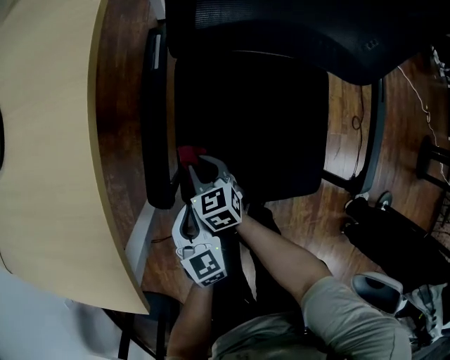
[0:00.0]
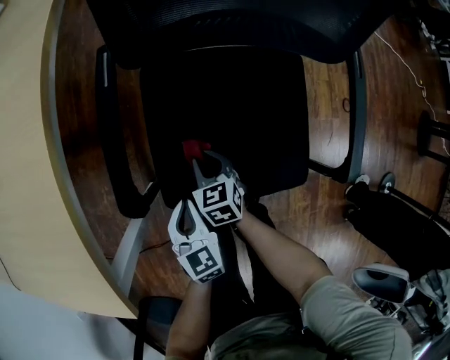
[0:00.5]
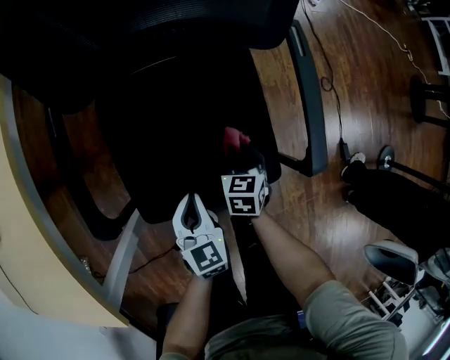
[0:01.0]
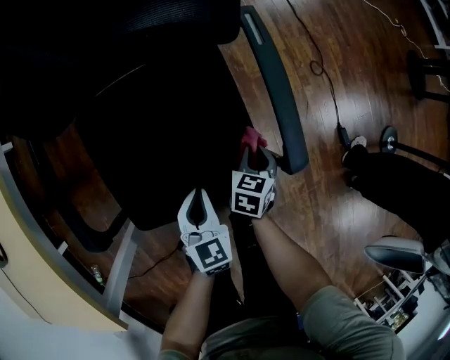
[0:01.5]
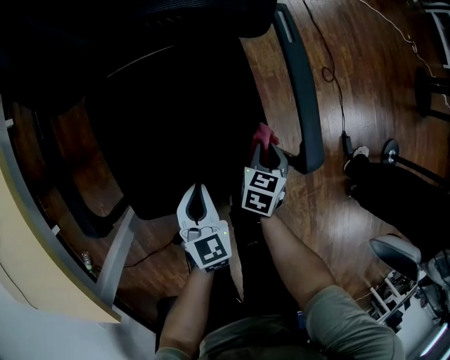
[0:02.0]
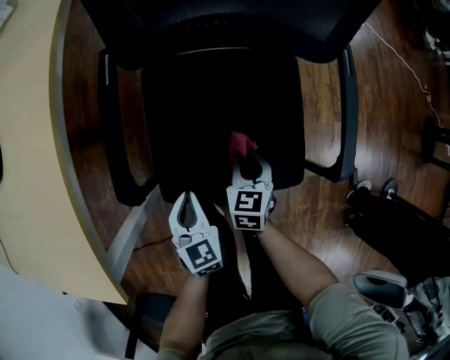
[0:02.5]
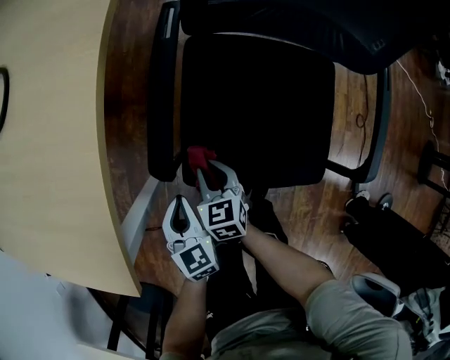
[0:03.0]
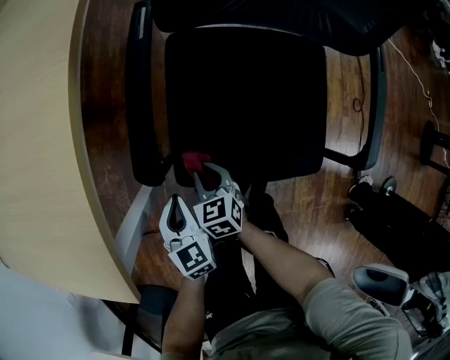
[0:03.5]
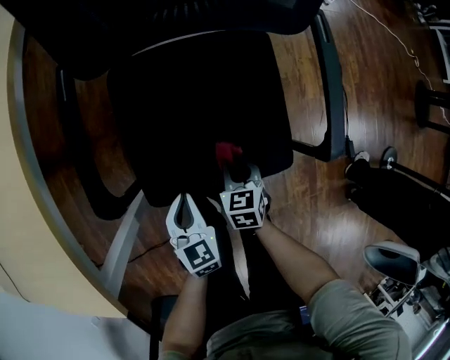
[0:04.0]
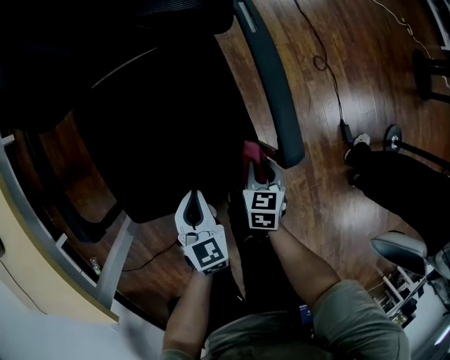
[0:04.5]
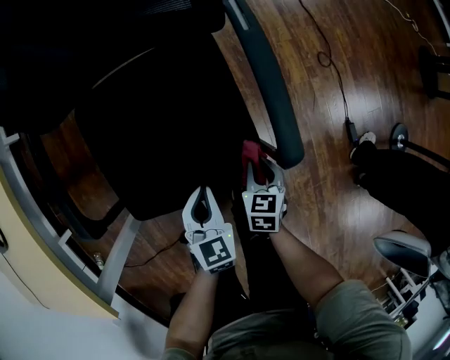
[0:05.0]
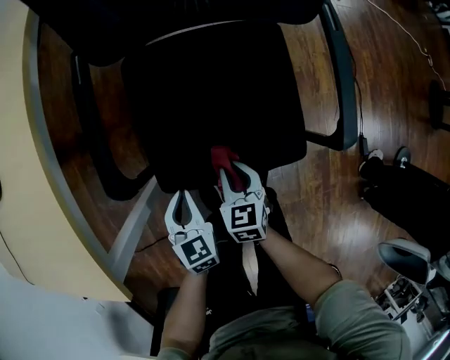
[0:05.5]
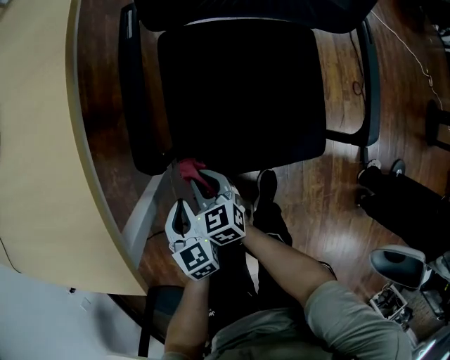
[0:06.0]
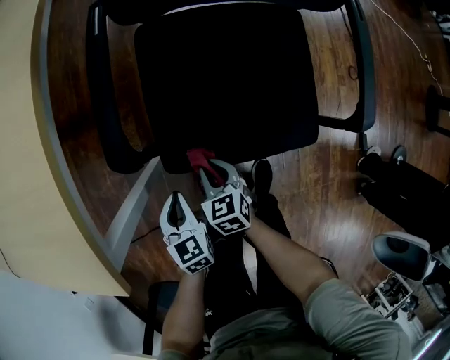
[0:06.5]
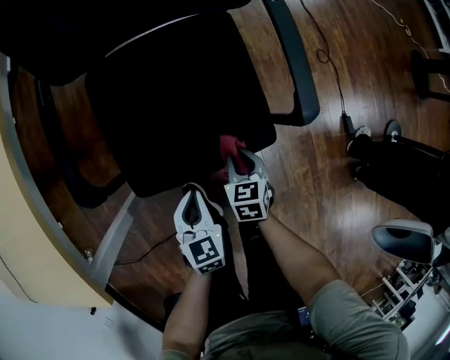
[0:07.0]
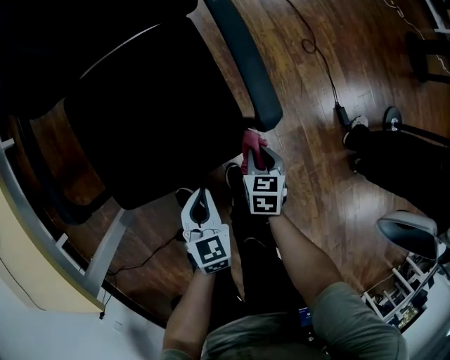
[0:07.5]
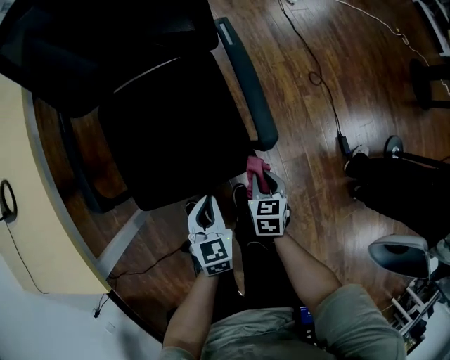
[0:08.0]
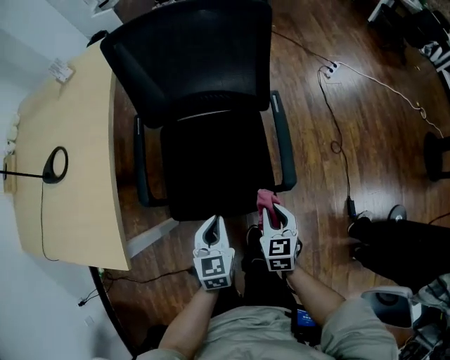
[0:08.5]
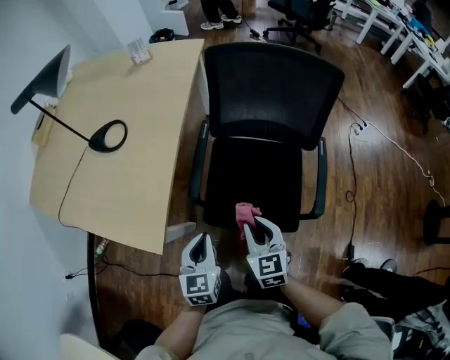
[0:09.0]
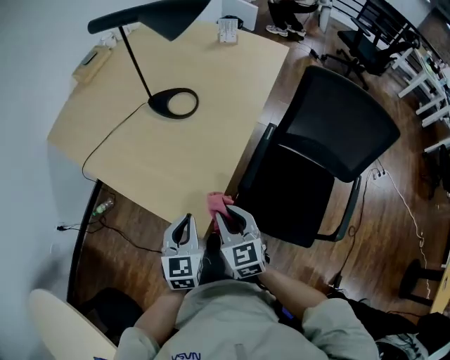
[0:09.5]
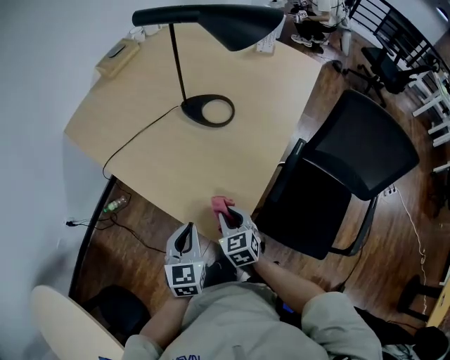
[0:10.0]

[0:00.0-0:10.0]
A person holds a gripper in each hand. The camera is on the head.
0:00.0 to 0:02.0: The left gripper shifts by some 25 cm, and turns by approximately 20 degrees, while the right gripper changes place by about 40 cm, and turns by about 60 degrees.
0:02.0 to 0:04.0: The right gripper changes its angle by roughly 30 degrees.
0:04.0 to 0:06.0: The left gripper ends up some 15 cm from where it was. Meanwhile the right gripper ends up some 25 cm from where it was, and turns by approximately 30 degrees.
0:06.0 to 0:08.0: The right gripper ends up some 40 cm from where it was, and swivels about 40 degrees; the left gripper ends up approximately 35 cm from where it was, and swivels roughly 30 degrees.
0:08.0 to 0:10.0: The pair of grippers is taken some 60 cm. The left gripper rotates roughly 50 degrees; the right gripper swivels about 70 degrees.

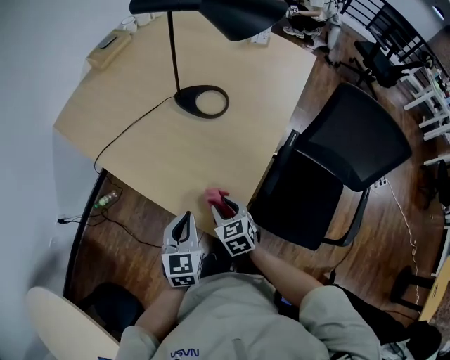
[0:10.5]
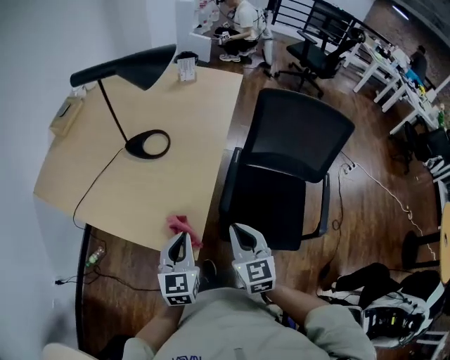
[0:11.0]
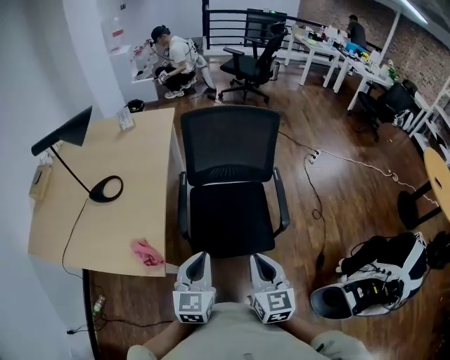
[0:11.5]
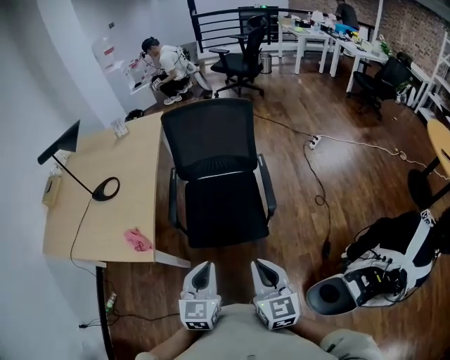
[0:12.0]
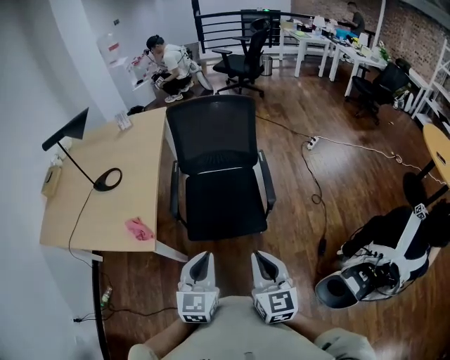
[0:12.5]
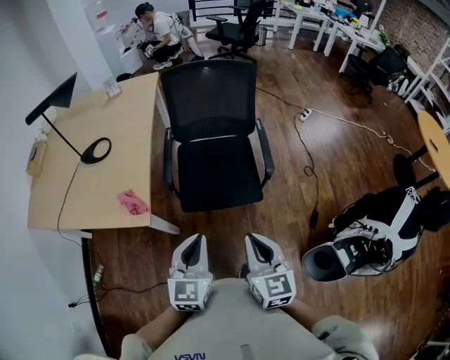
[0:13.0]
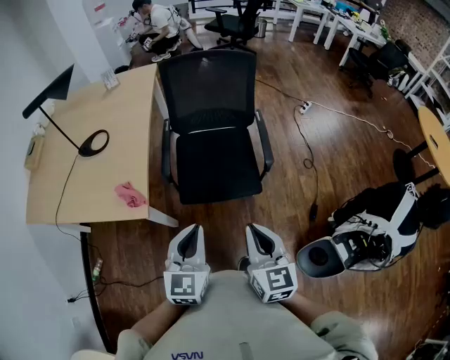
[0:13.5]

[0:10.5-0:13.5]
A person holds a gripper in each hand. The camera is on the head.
0:10.5 to 0:12.0: Both grippers are carried approximately 50 cm. The left gripper changes its angle by roughly 40 degrees. Meanwhile the right gripper tips its fingers upward by some 30 degrees, and closes its fingers.
0:12.0 to 0:13.5: The grippers both shift to the left by some 5 cm.

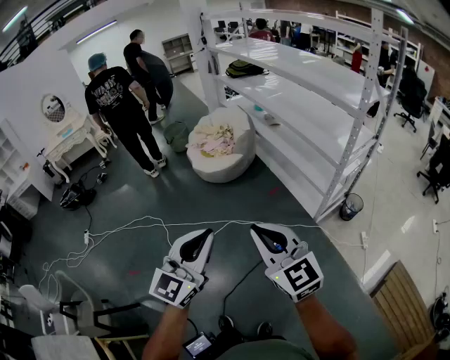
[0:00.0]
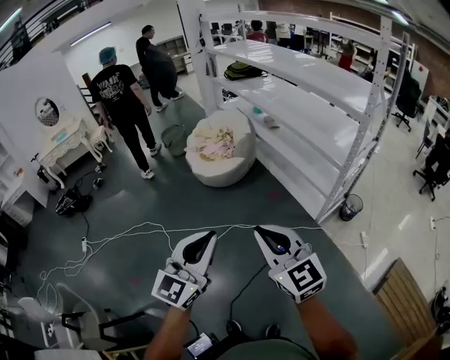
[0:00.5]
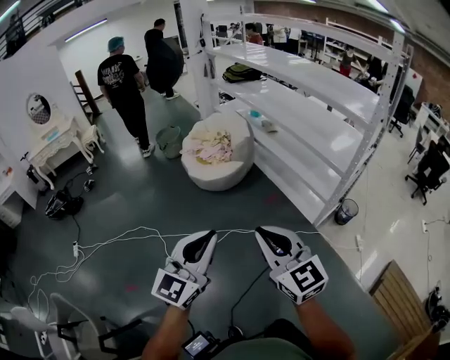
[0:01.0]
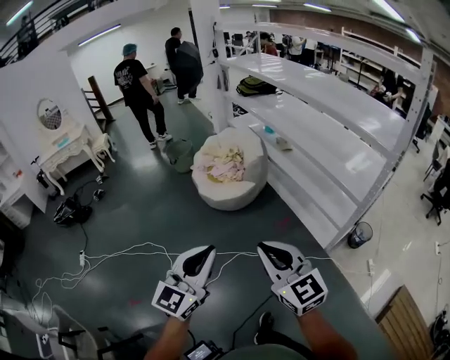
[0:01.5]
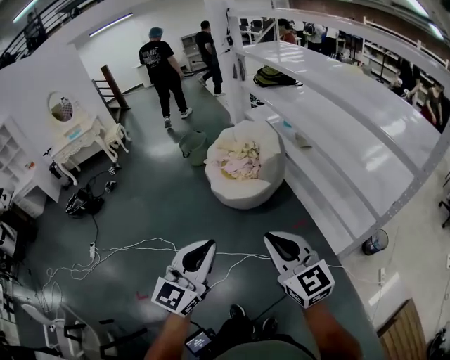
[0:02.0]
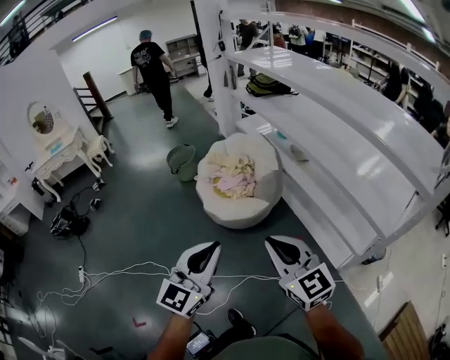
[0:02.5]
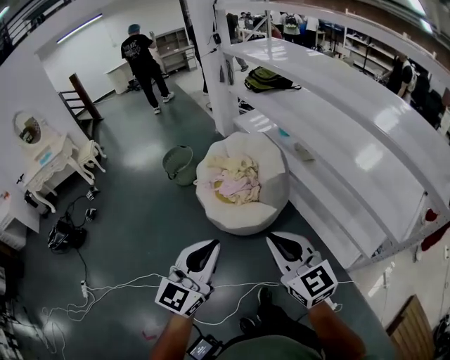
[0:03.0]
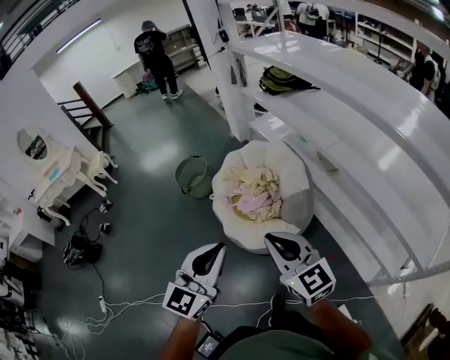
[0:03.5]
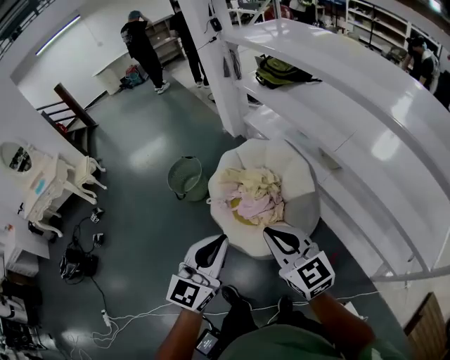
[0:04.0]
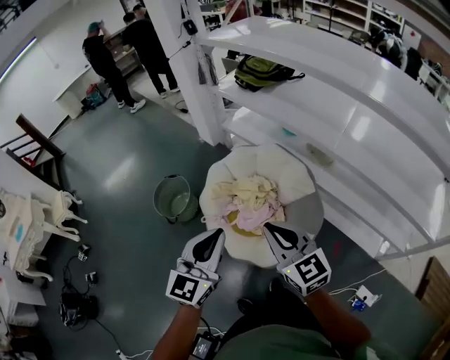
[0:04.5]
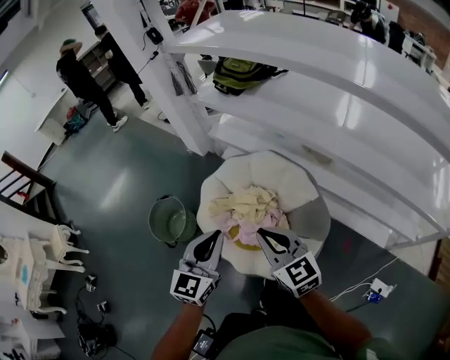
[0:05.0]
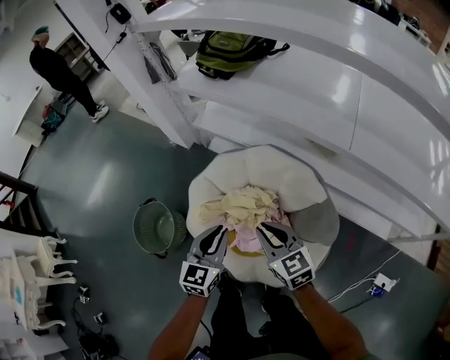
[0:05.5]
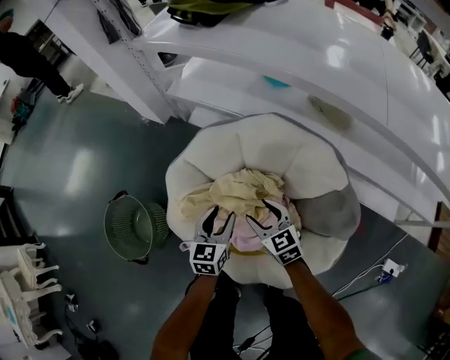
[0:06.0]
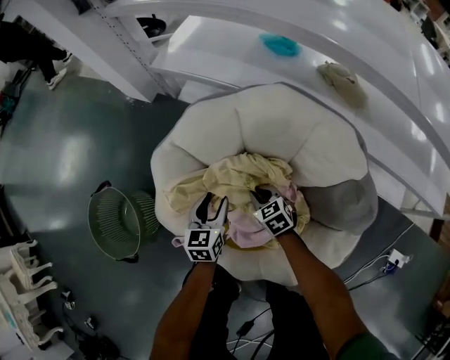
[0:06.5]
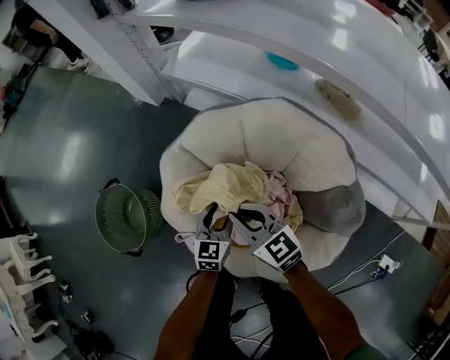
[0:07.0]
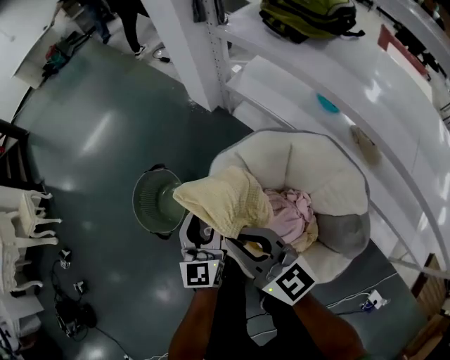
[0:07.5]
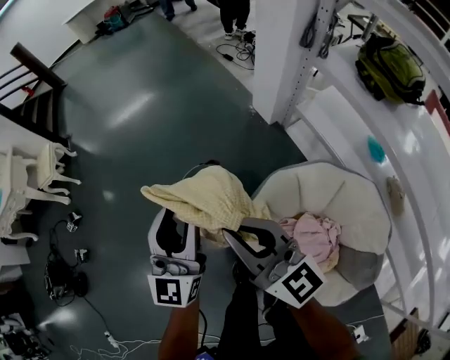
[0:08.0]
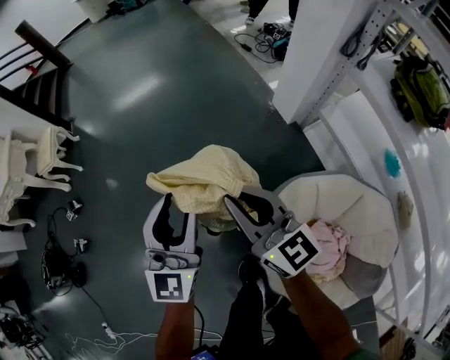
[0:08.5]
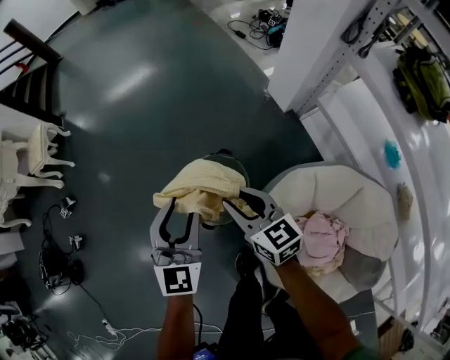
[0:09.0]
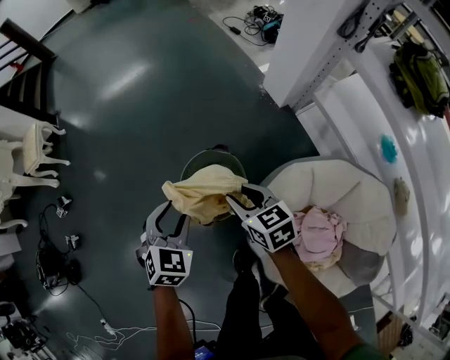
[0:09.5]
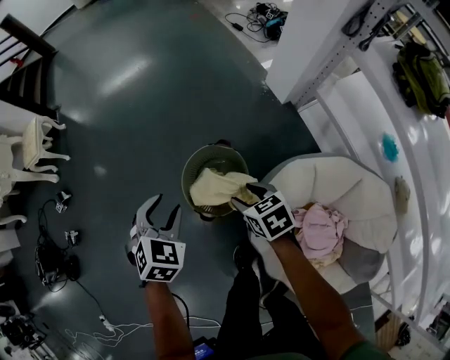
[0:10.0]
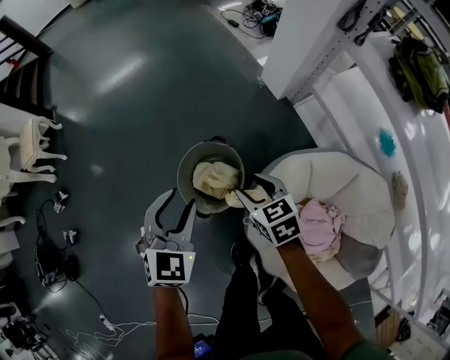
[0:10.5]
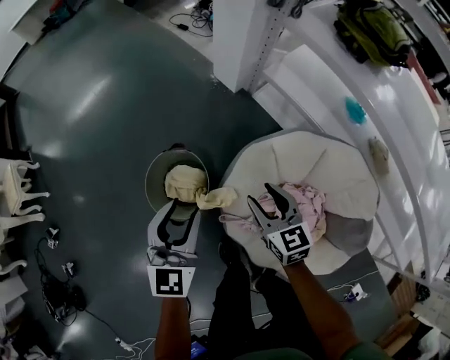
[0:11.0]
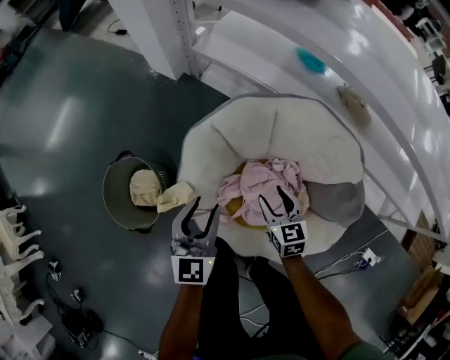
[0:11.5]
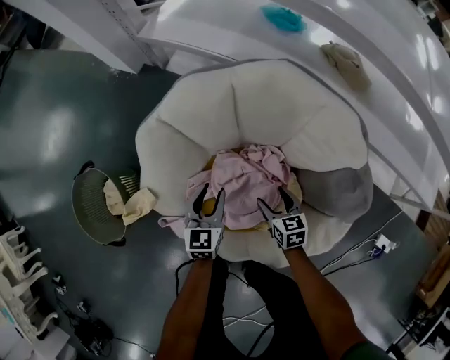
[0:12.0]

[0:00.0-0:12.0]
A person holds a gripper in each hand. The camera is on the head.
0:00.0 to 0:02.0: Both grippers travel together forward, some 30 cm.
0:02.0 to 0:04.0: Both grippers are carried forward, roughly 70 cm.
0:04.0 to 0:06.0: The pair of grippers is taken forward, some 50 cm. Both grippers travel together downward, about 50 cm. The right gripper turns by roughly 40 degrees, and opens, while the left gripper swivels about 30 degrees, and opens its fingers.
0:06.0 to 0:08.0: The pair of grippers is taken approximately 40 cm. The right gripper tips its fingers upward by some 40 degrees, and closes up. The left gripper angles its fingers upward, by about 40 degrees.
0:08.0 to 0:10.0: The left gripper shifts approximately 25 cm downward, to the left and forward, and tips its fingers downward by approximately 60 degrees; the right gripper heads downward, covering about 30 cm, tilts its fingers approximately 60 degrees downward, and opens.
0:10.0 to 0:12.0: Both grippers are carried approximately 60 cm. The right gripper swivels about 50 degrees, while the left gripper turns by approximately 40 degrees.

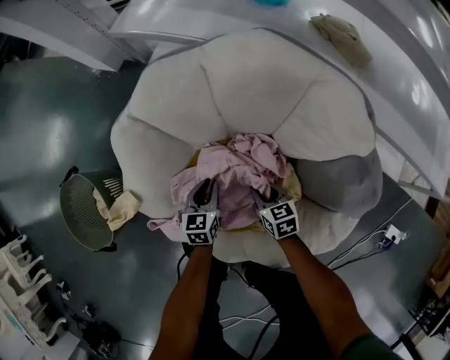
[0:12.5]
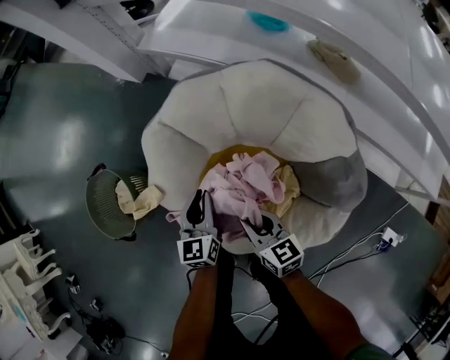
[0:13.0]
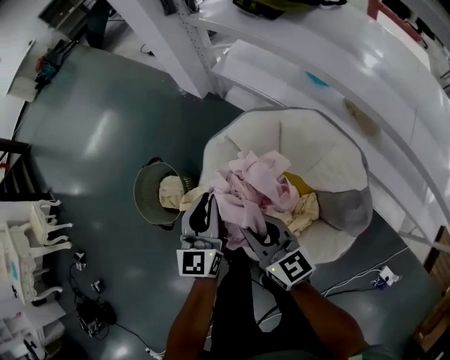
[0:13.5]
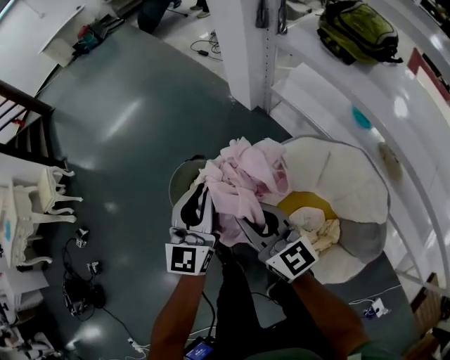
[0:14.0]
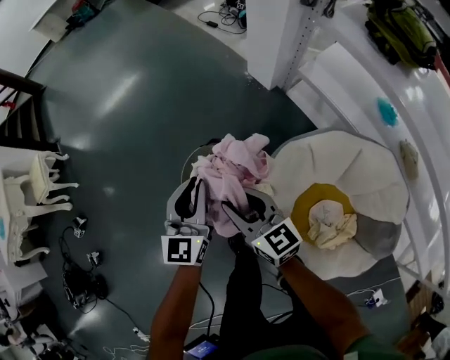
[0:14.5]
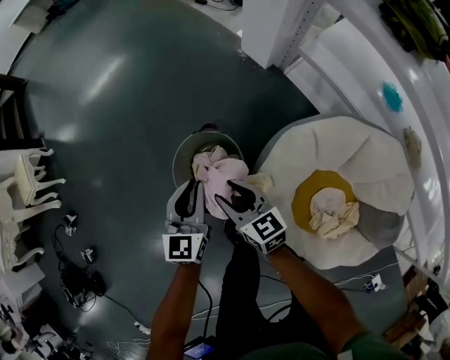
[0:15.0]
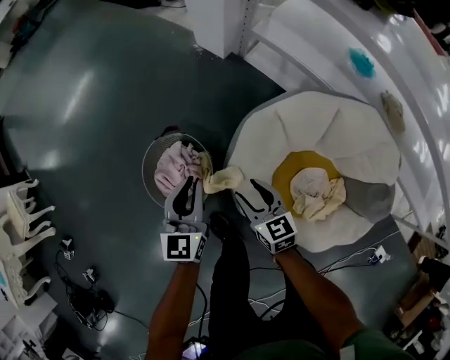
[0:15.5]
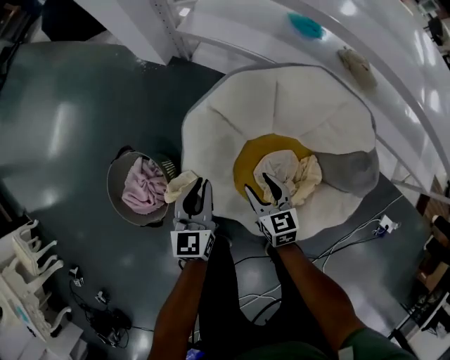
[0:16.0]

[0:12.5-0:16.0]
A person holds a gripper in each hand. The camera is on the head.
0:12.5 to 0:14.5: The two grippers travel together, roughly 50 cm. The left gripper changes its angle by about 40 degrees; the right gripper tilts its fingers about 30 degrees upward.
0:14.5 to 0:16.0: The left gripper changes place by about 35 cm, and changes its angle by about 30 degrees. Meanwhile the right gripper shifts by some 40 cm, and changes its angle by roughly 50 degrees.
